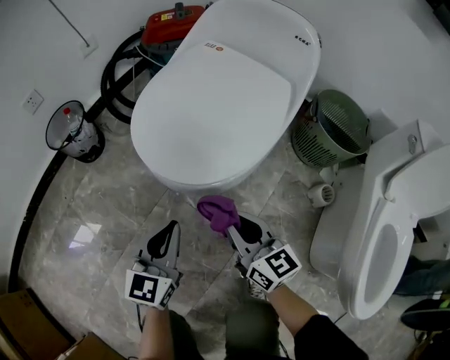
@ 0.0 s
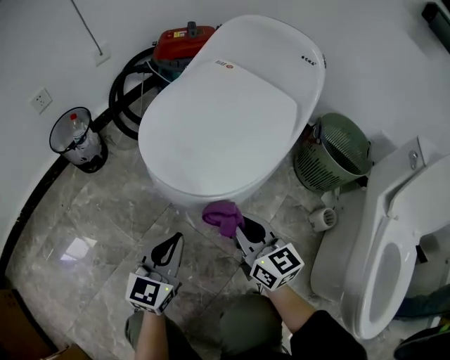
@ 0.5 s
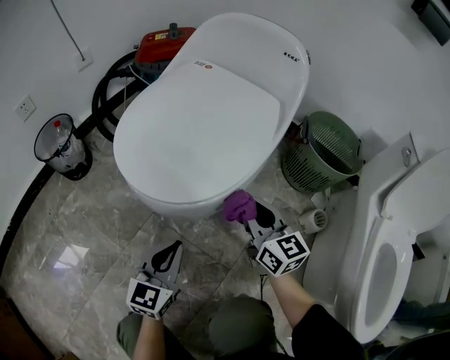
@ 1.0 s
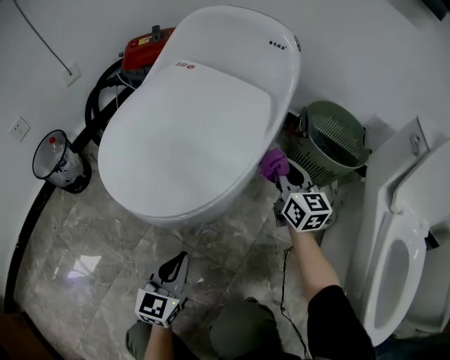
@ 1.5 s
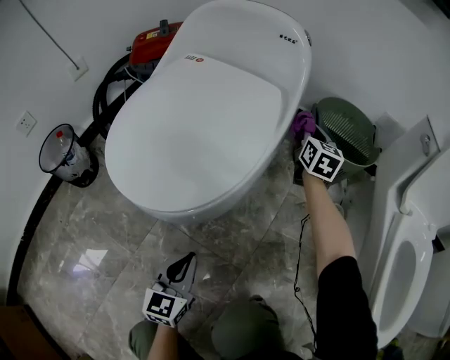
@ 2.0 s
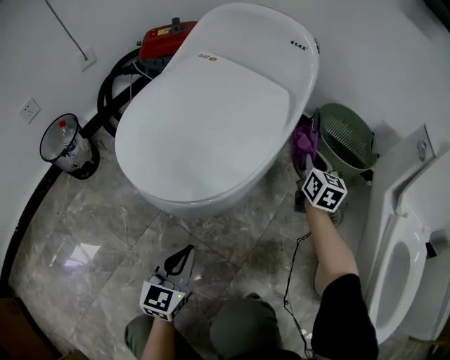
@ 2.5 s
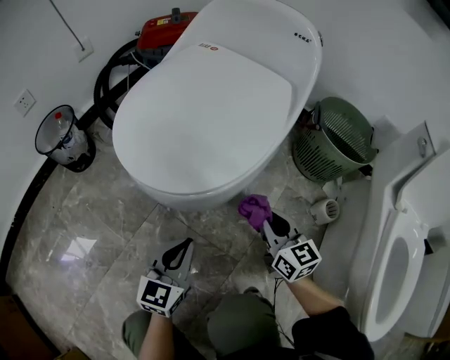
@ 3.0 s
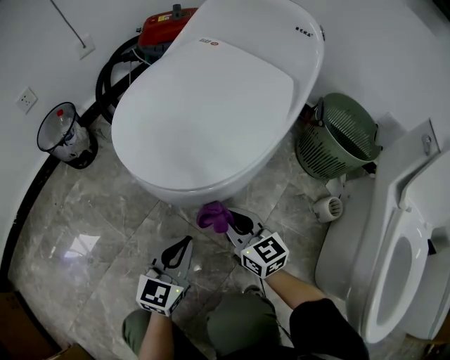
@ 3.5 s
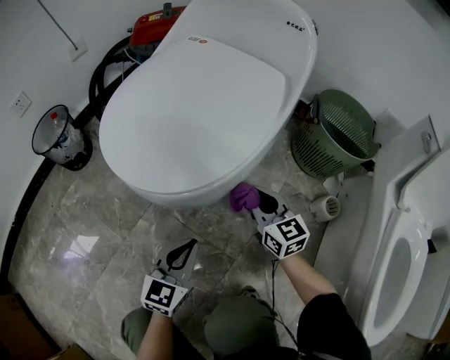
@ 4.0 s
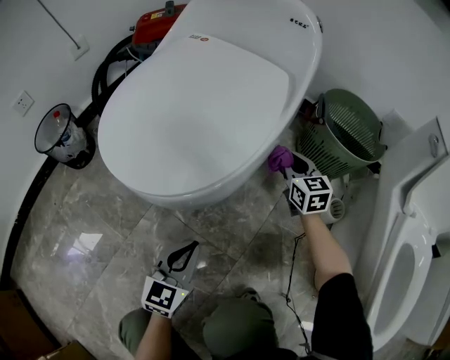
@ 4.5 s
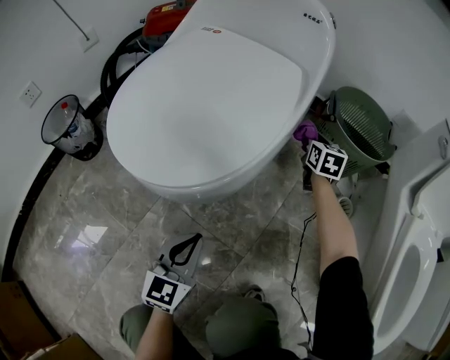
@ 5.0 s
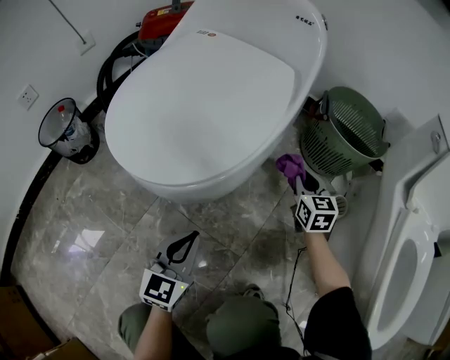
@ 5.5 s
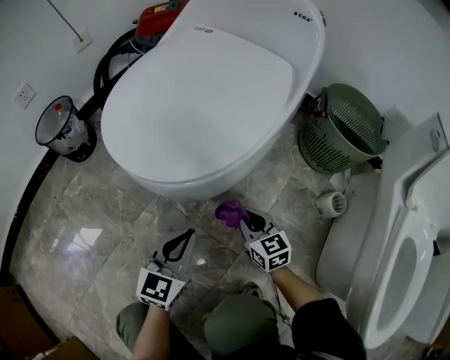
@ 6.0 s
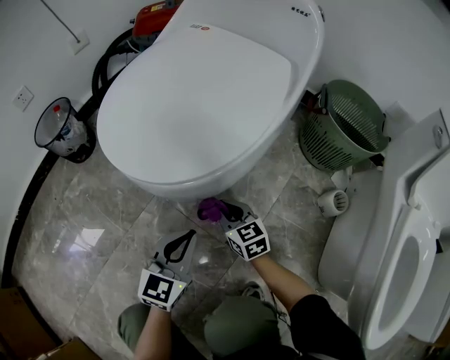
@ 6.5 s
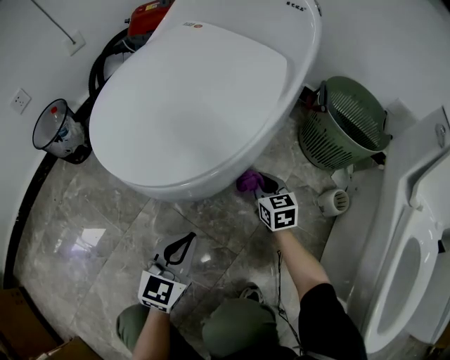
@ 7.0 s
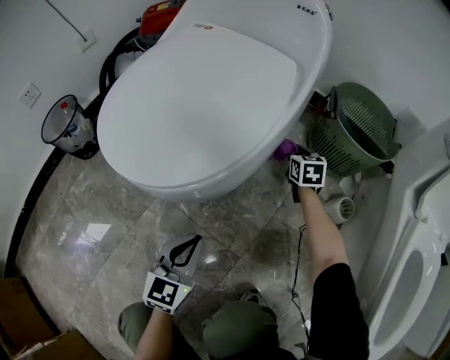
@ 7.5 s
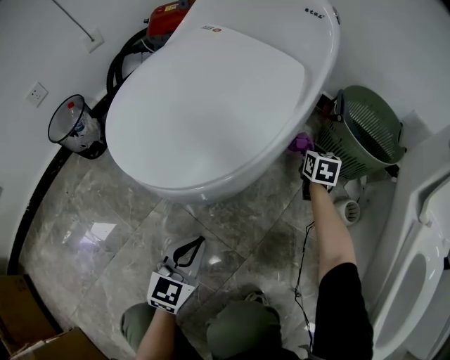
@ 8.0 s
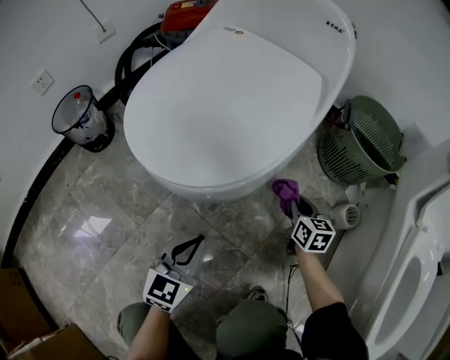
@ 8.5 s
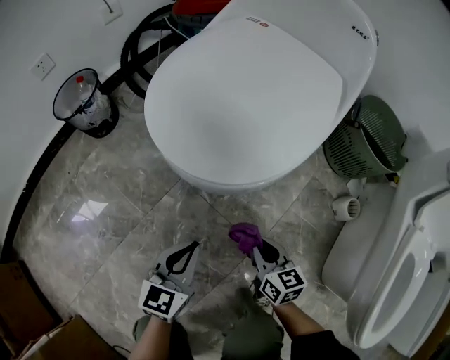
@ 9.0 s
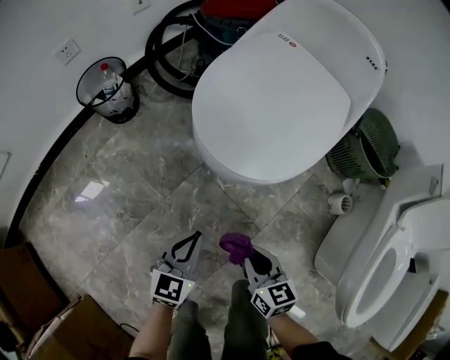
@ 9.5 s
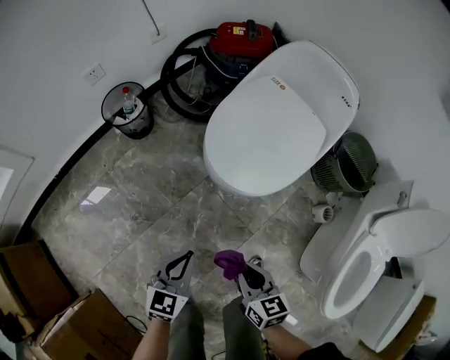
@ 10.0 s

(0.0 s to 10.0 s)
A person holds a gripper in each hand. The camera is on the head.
0.0 s - 2.0 s: The left gripper shifts roughly 15 cm downward, while the right gripper ends up some 40 cm from where it was, and swivels about 40 degrees.
2.0 s - 4.0 s: The right gripper ends up about 30 cm from where it was, and rotates approximately 40 degrees.
4.0 s - 6.0 s: The right gripper travels downward by approximately 10 cm, and moves some 20 cm forward and comes back.
6.0 s - 8.0 s: The right gripper moves forward and to the right, approximately 30 cm, and turns by about 30 degrees.
8.0 s - 10.0 s: The right gripper is displaced backward, to the left and upward by approximately 60 cm, and swivels approximately 30 degrees, while the left gripper travels upward, to the left and backward by approximately 35 cm.

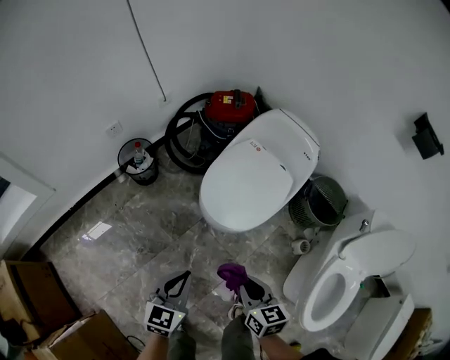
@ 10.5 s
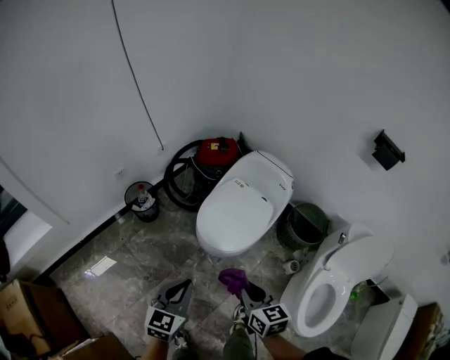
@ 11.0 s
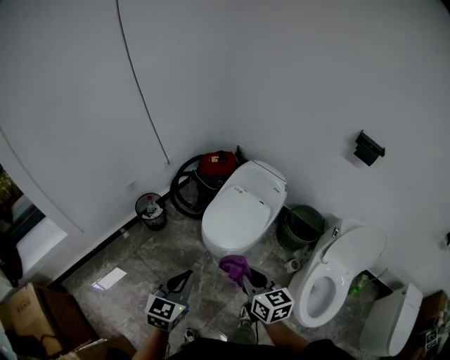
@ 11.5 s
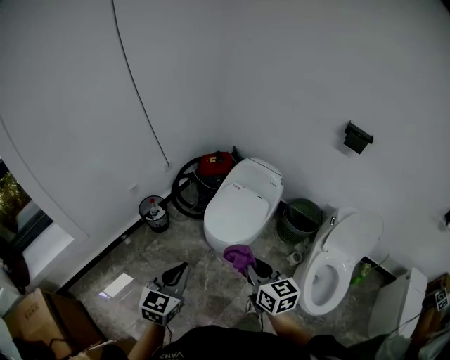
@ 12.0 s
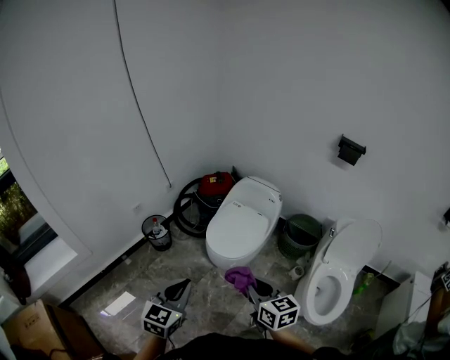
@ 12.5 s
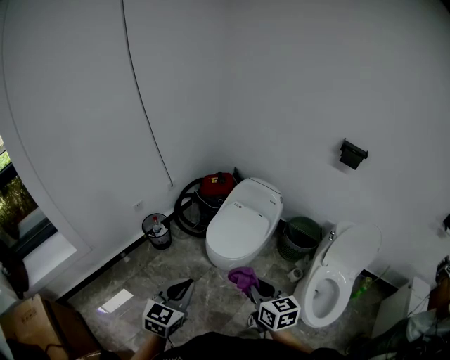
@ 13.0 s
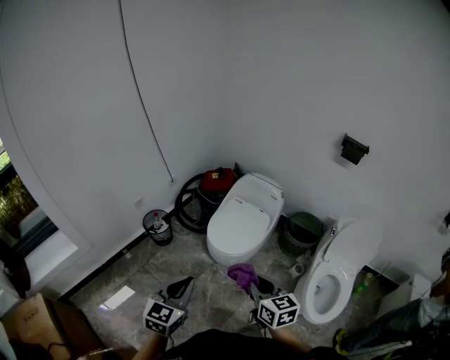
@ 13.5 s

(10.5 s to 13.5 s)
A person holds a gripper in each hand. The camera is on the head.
10.5 s - 12.0 s: Both grippers move upward, about 30 cm.
12.0 s - 13.5 s: The grippers move only a little.

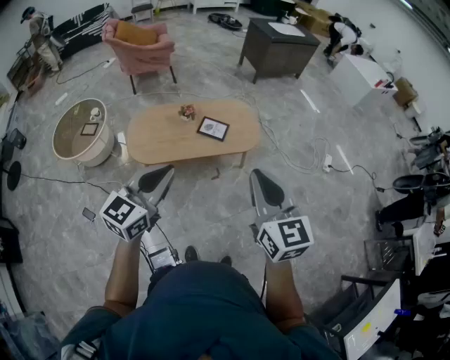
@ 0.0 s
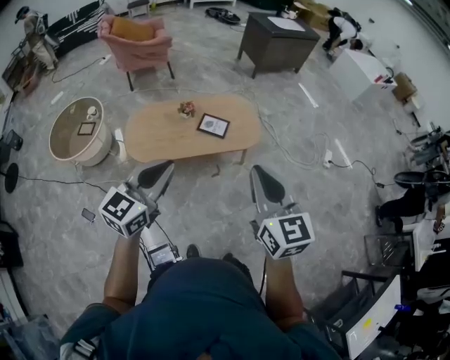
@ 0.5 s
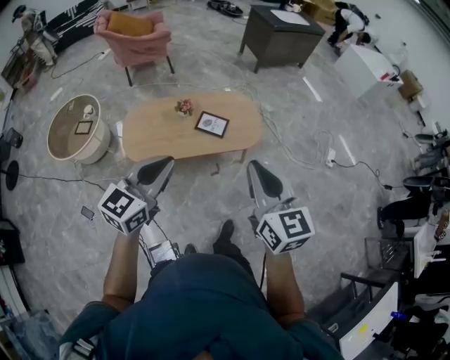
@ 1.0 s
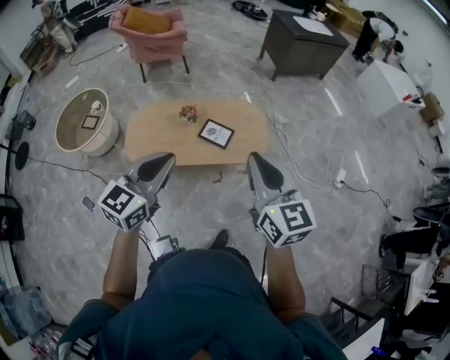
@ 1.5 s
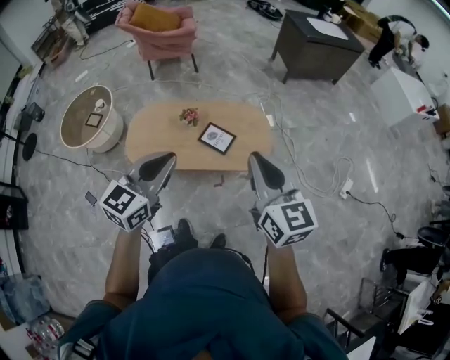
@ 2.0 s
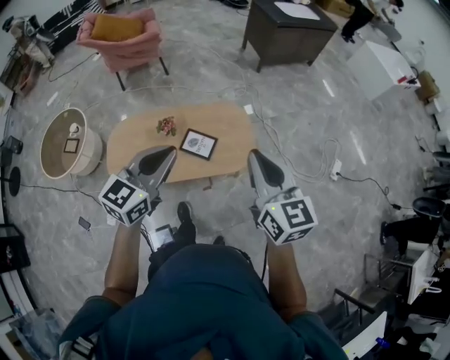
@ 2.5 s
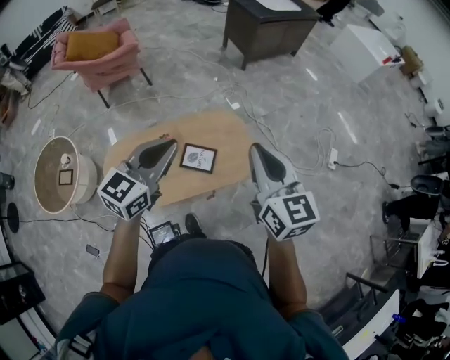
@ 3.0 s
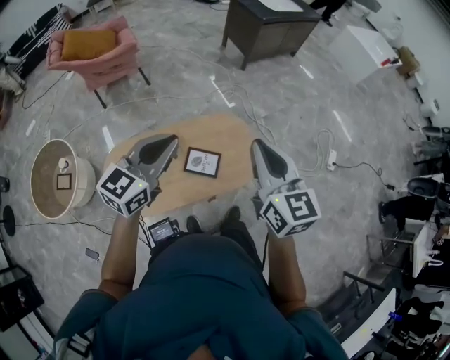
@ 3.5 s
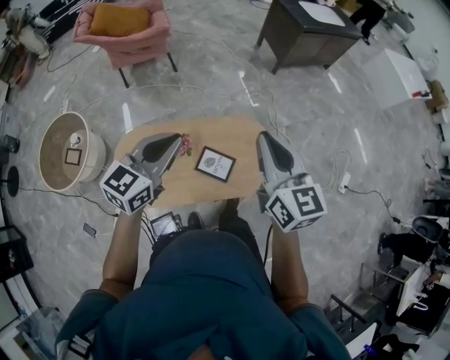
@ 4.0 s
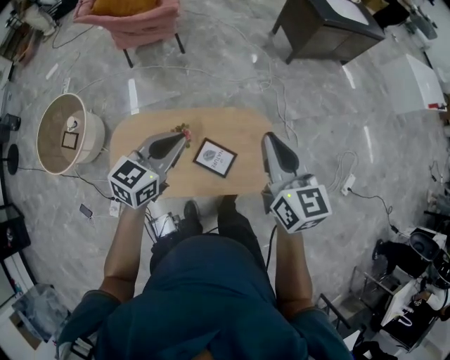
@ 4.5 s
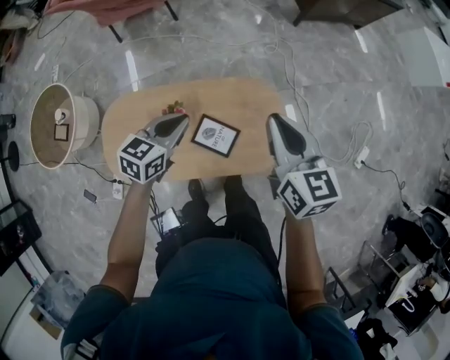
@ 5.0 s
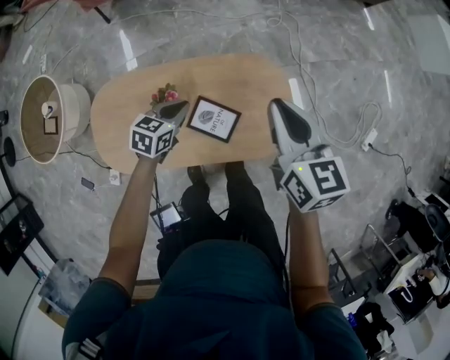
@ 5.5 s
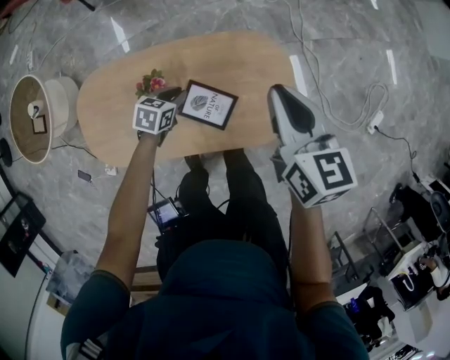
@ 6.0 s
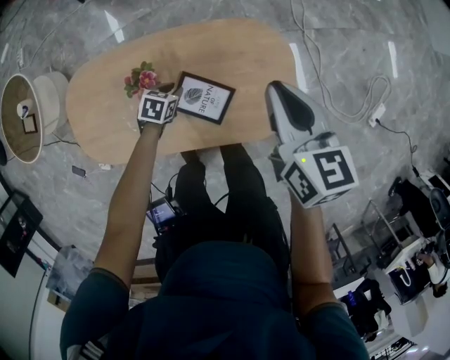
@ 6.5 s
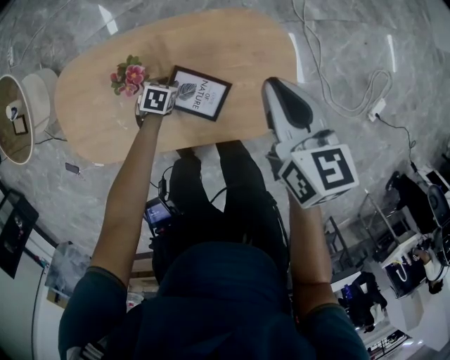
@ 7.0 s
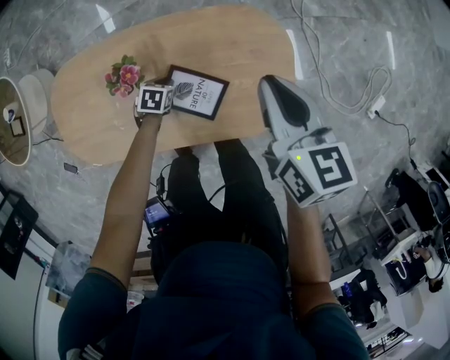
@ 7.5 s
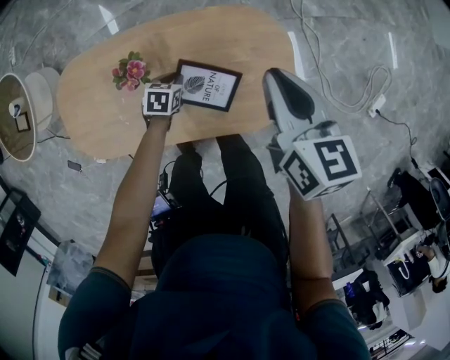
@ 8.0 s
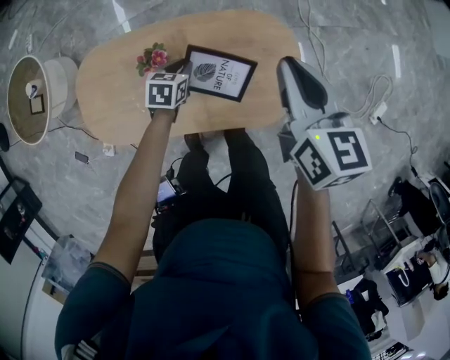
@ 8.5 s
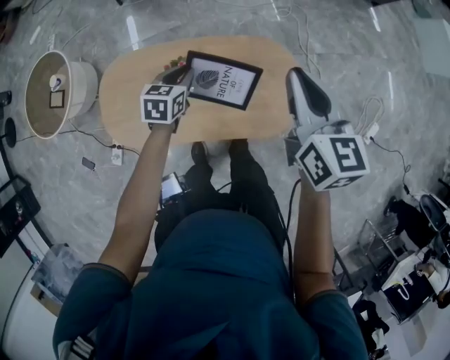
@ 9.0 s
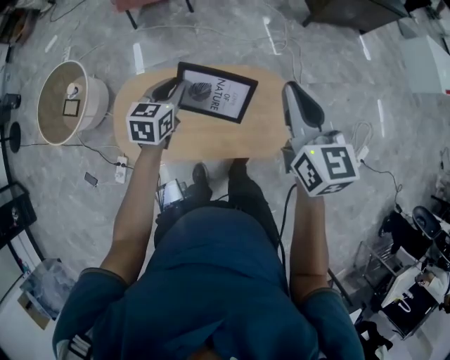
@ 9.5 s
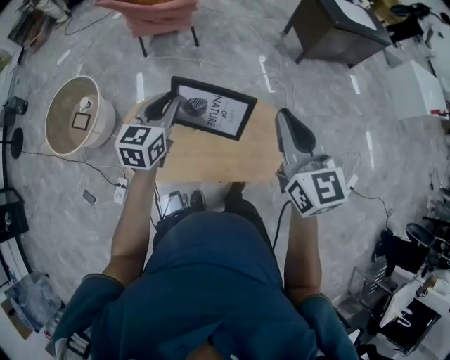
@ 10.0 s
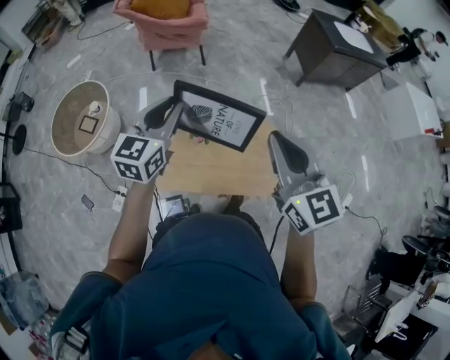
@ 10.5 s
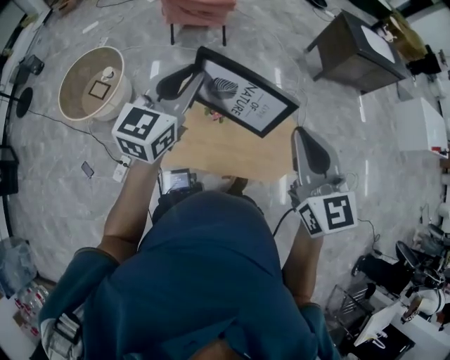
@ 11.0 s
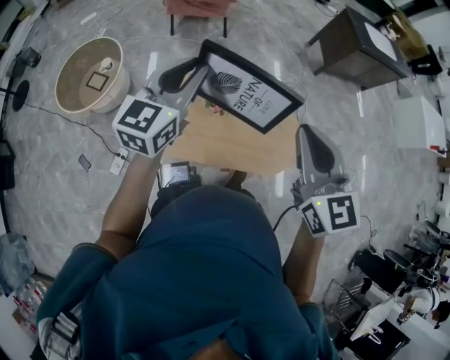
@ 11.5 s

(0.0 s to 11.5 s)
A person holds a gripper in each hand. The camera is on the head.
0.0 s - 2.0 s: The left gripper travels forward and to the right by approximately 25 cm. The right gripper moves forward, some 30 cm.
2.0 s - 4.0 s: The left gripper heads forward, covering about 30 cm. Meanwhile the right gripper moves forward and to the left, roughly 30 cm.
4.0 s - 6.0 s: The left gripper shifts about 50 cm downward, and tilts its fingers approximately 40 degrees downward. Meanwhile the right gripper travels downward and forward by some 30 cm, and changes its angle by roughly 20 degrees.
6.0 s - 7.5 s: The left gripper goes approximately 15 cm downward; the right gripper is displaced downward by roughly 10 cm.
7.5 s - 9.5 s: The left gripper heads upward, covering some 50 cm, and points its fingers about 40 degrees further upward, while the right gripper moves upward, some 30 cm, and swivels approximately 30 degrees.
9.5 s - 11.5 s: The right gripper goes approximately 20 cm upward, backward and to the left. Meanwhile the left gripper is displaced upward by about 25 cm, and changes its angle by some 30 degrees.

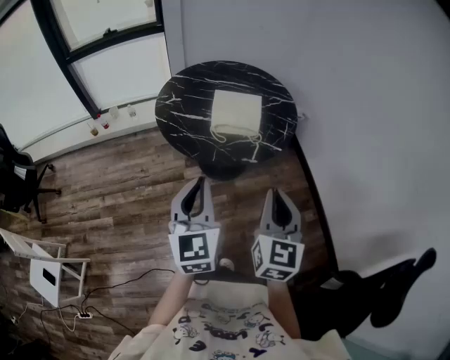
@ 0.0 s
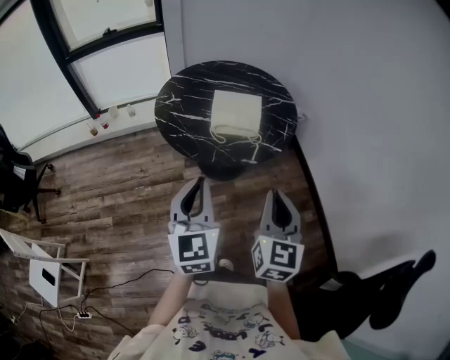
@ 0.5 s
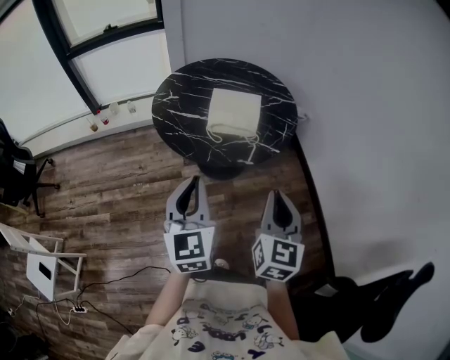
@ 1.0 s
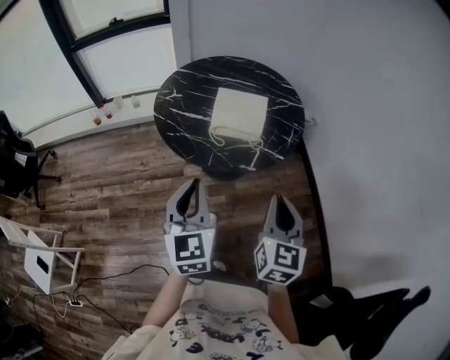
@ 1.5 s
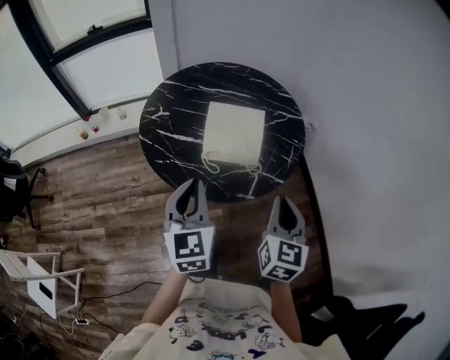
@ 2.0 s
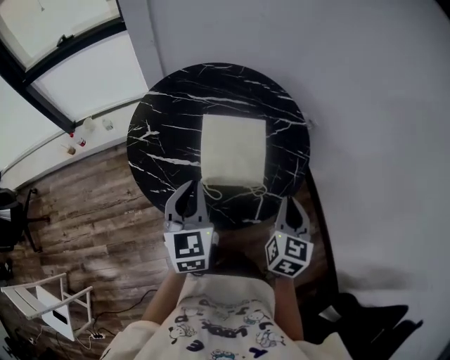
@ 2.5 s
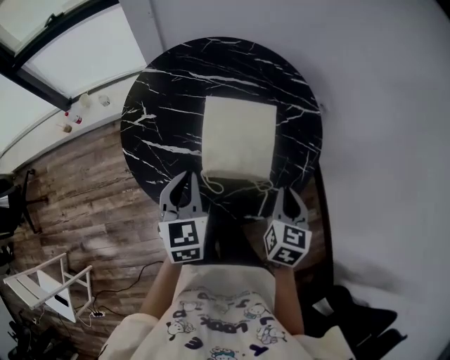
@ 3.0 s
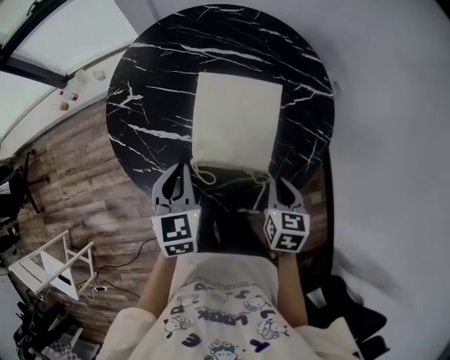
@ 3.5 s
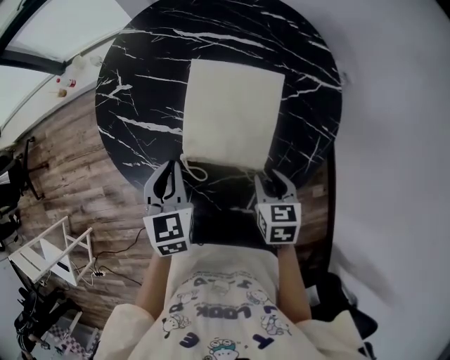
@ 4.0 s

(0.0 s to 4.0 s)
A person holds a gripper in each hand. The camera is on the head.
0.0 s - 2.0 s: Both grippers travel together forward, roughly 20 cm.
2.0 s - 4.0 s: The two grippers go roughly 30 cm downward and forward. The left gripper changes its angle by roughly 30 degrees. The right gripper tilts its fingers about 40 degrees downward, and opens up.
